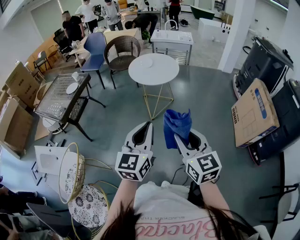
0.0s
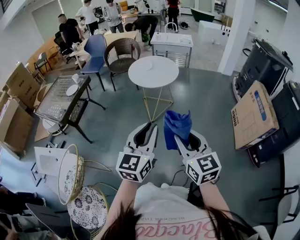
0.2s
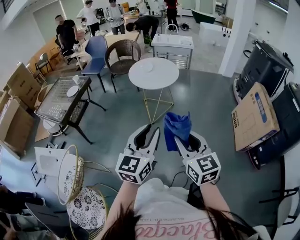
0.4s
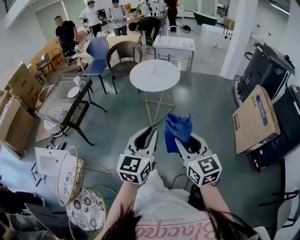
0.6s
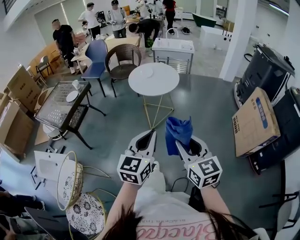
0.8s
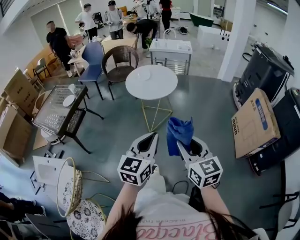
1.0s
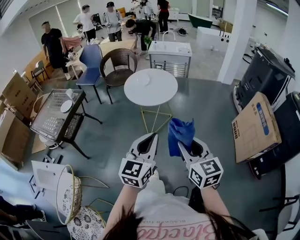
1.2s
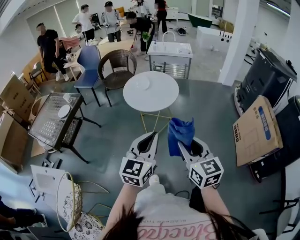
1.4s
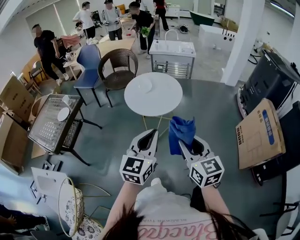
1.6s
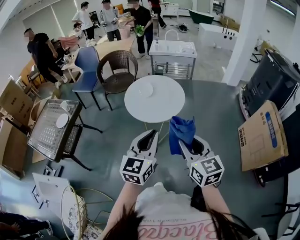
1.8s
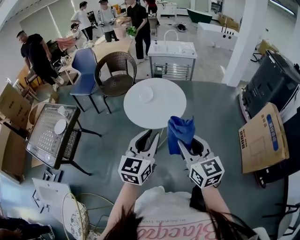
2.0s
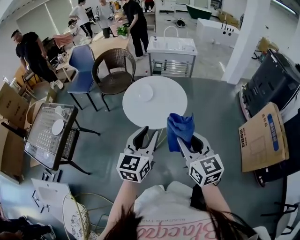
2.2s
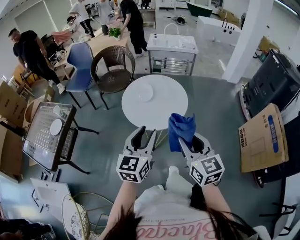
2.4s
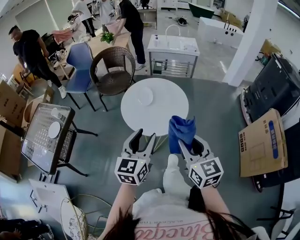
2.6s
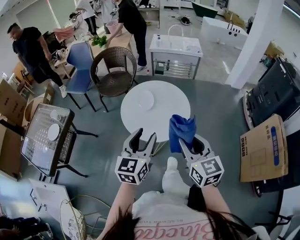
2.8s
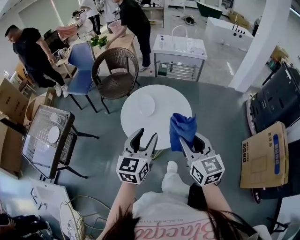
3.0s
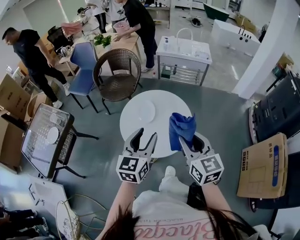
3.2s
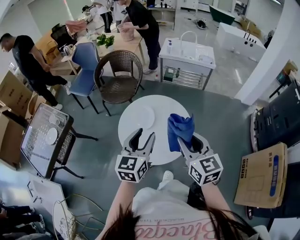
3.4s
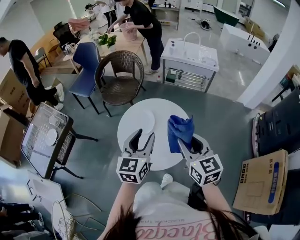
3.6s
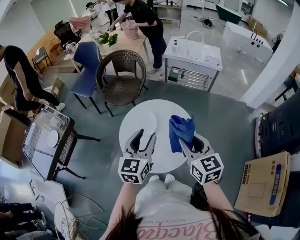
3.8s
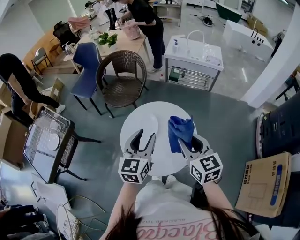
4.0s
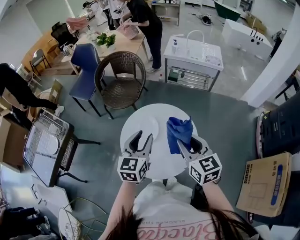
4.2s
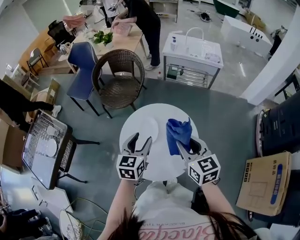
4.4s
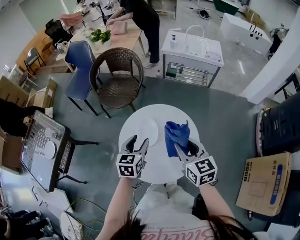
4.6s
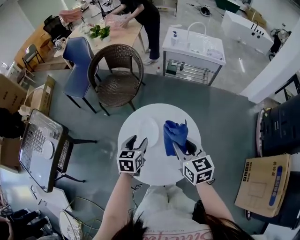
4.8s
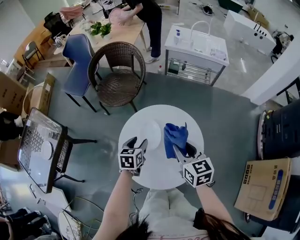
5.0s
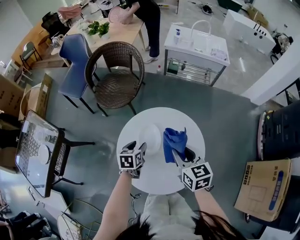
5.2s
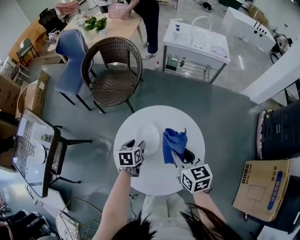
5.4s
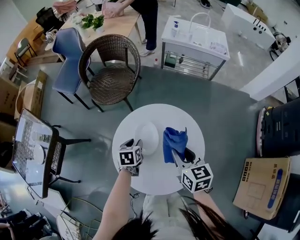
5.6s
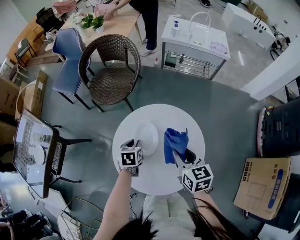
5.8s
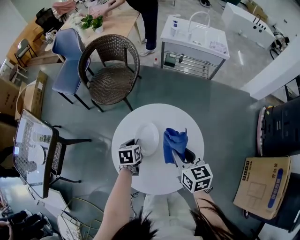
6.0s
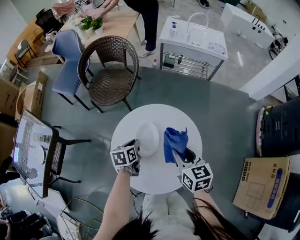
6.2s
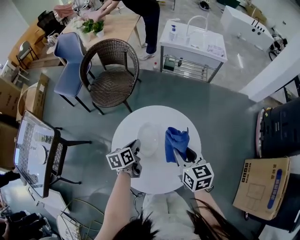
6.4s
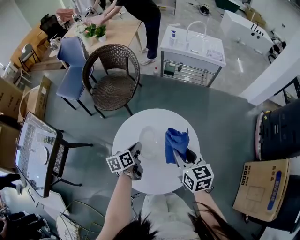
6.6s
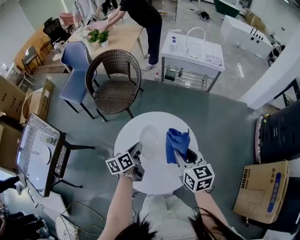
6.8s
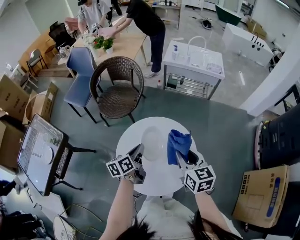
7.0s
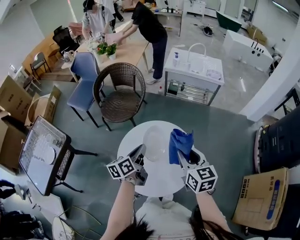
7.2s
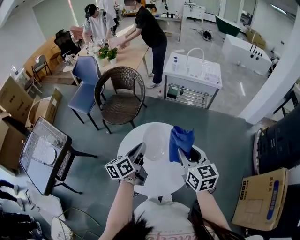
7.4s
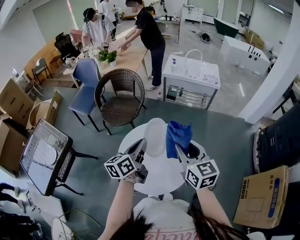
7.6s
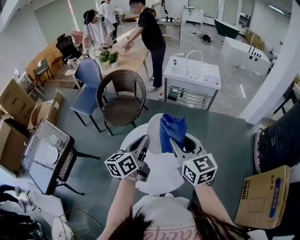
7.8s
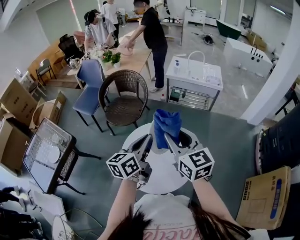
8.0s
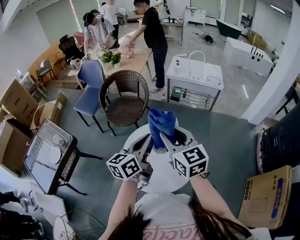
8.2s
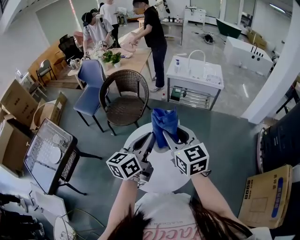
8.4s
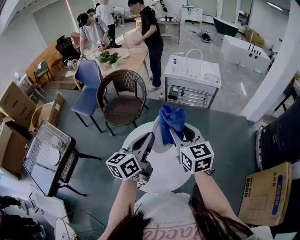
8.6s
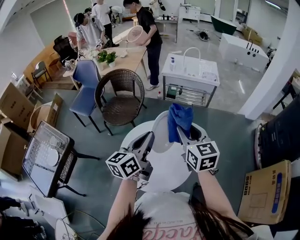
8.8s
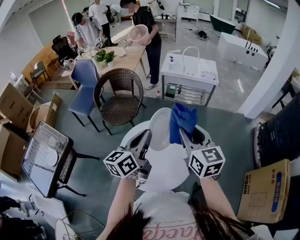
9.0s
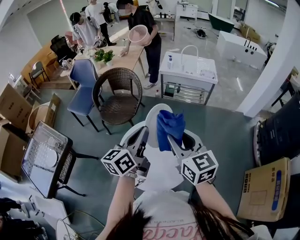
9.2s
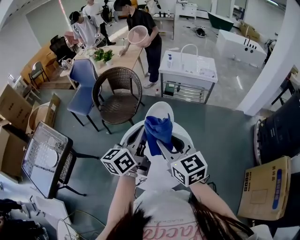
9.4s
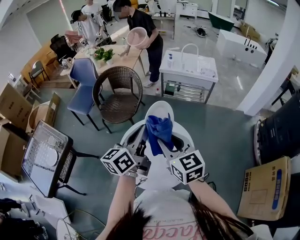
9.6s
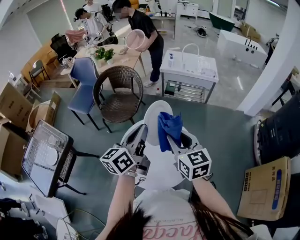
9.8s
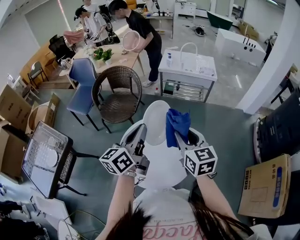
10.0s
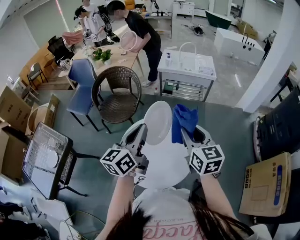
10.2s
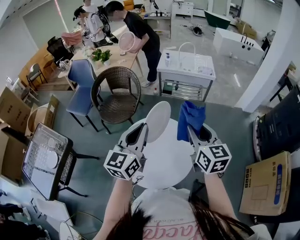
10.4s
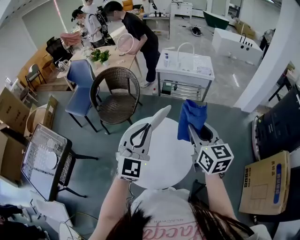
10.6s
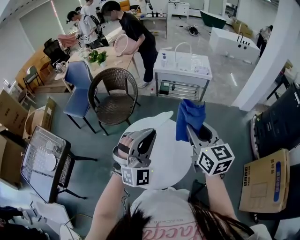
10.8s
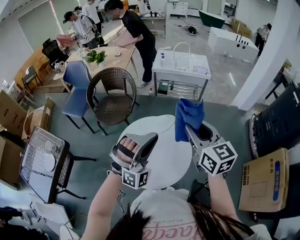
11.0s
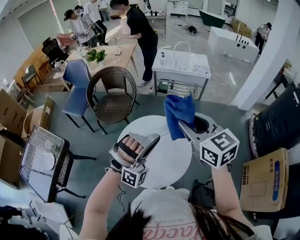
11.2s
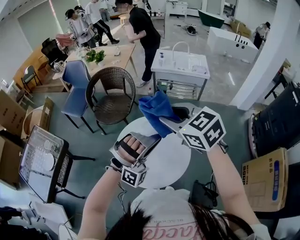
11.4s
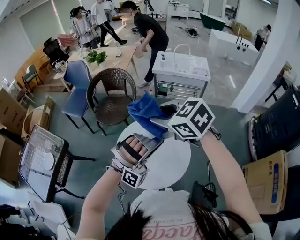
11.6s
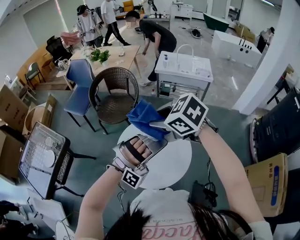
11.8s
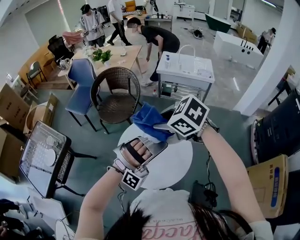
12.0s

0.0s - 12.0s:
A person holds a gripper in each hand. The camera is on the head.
0.0s - 1.6s: The grippers both shift forward by some 25 cm. The left gripper opens and closes again.
1.6s - 3.0s: Both grippers travel together forward, roughly 30 cm. The left gripper opens.
3.0s - 4.4s: The left gripper goes approximately 25 cm forward and downward. Meanwhile the right gripper shifts roughly 20 cm forward.
4.4s - 6.0s: The left gripper is displaced downward by about 20 cm, tips its fingers downward by roughly 30 degrees, and closes its fingers. The right gripper moves downward and forward, about 15 cm.
6.0s - 7.6s: The two grippers go roughly 25 cm upward. The right gripper swivels about 20 degrees. Meanwhile the left gripper points its fingers about 50 degrees further upward.
7.6s - 9.0s: The right gripper reaches roughly 10 cm to the left, then returns, while the left gripper heads upward, covering about 5 cm.
9.0s - 10.4s: The right gripper travels to the left and back again, about 10 cm each way; the left gripper rotates about 30 degrees.
10.4s - 12.0s: The right gripper goes roughly 15 cm to the left, and tilts its fingers approximately 30 degrees downward, while the left gripper moves backward, to the right and downward, roughly 15 cm, and twists about 110 degrees clockwise, seen from behind.

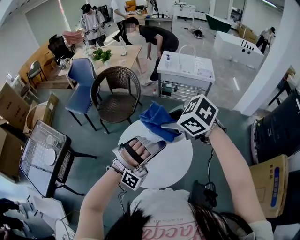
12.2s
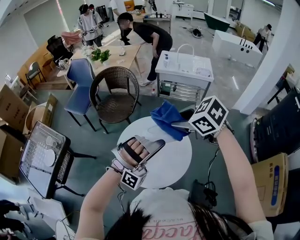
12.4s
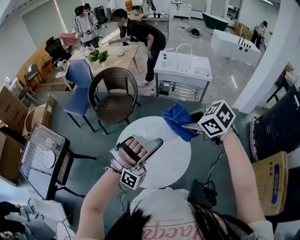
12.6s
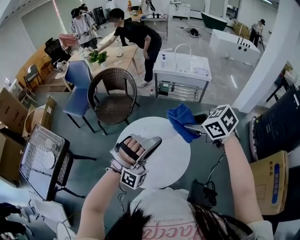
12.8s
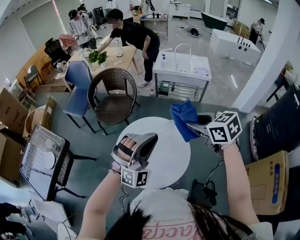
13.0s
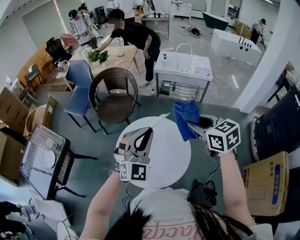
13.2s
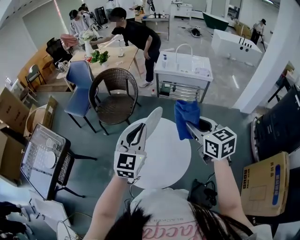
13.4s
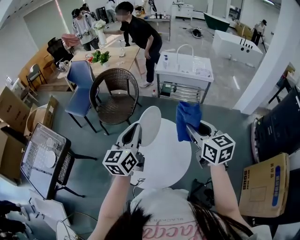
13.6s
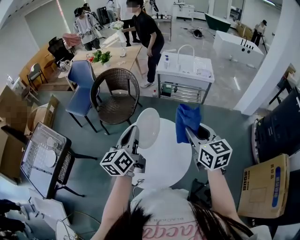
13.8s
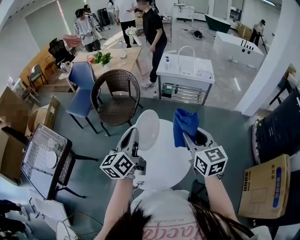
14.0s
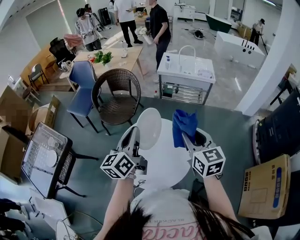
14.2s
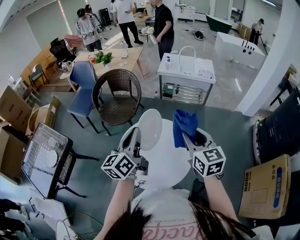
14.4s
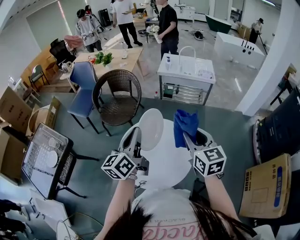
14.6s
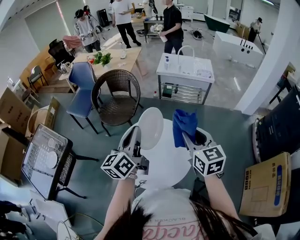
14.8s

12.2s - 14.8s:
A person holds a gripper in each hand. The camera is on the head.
12.2s - 13.4s: The left gripper moves forward, about 10 cm, and rolls counterclockwise, seen from behind, by roughly 90 degrees. Meanwhile the right gripper heads to the right, covering about 15 cm, and rotates approximately 40 degrees.
13.4s - 14.8s: The left gripper twists roughly 50 degrees counterclockwise, seen from behind.

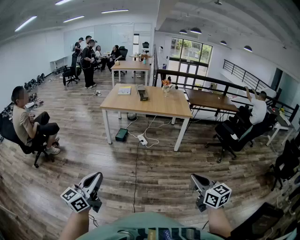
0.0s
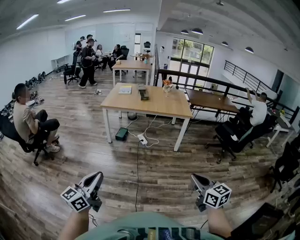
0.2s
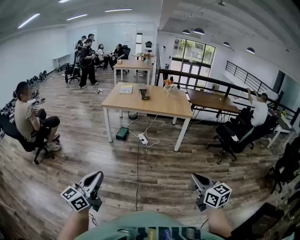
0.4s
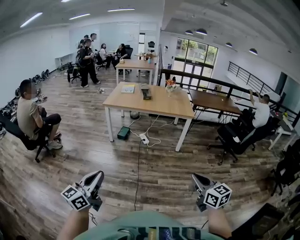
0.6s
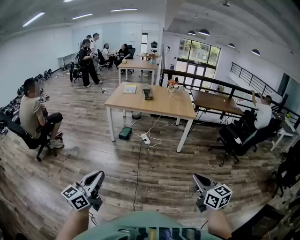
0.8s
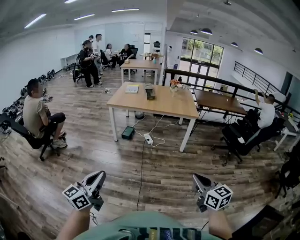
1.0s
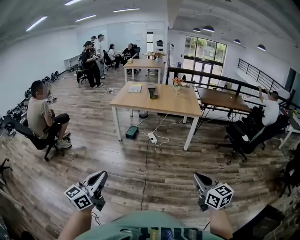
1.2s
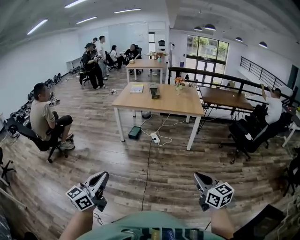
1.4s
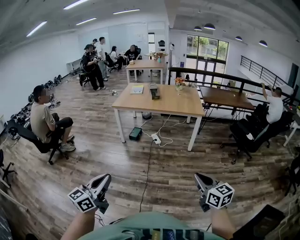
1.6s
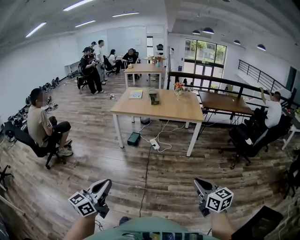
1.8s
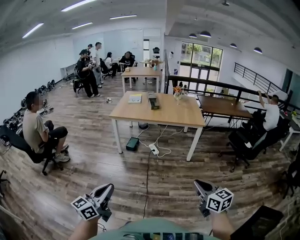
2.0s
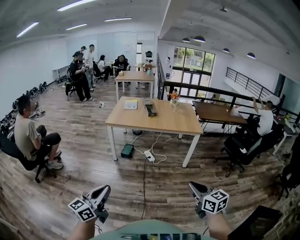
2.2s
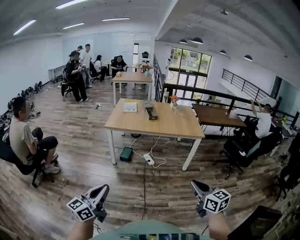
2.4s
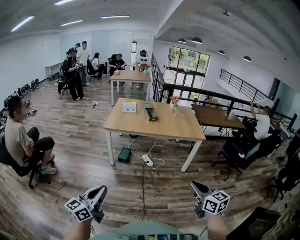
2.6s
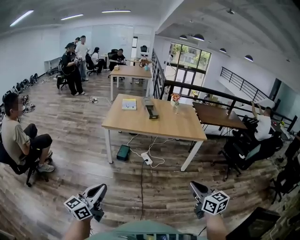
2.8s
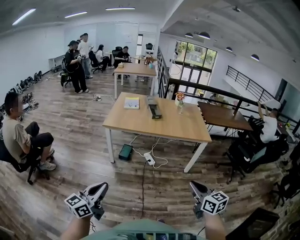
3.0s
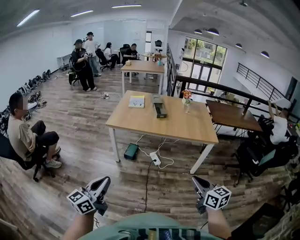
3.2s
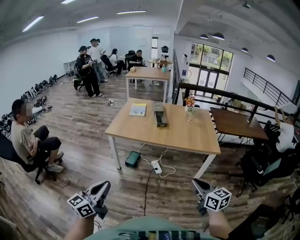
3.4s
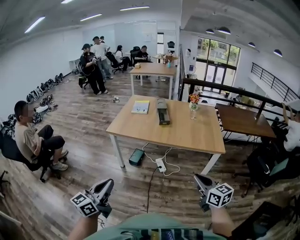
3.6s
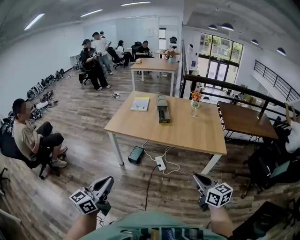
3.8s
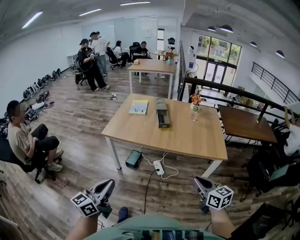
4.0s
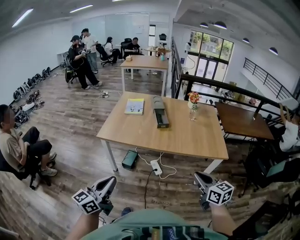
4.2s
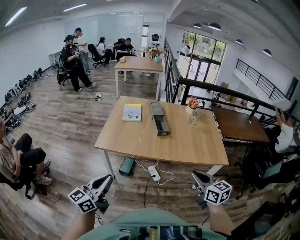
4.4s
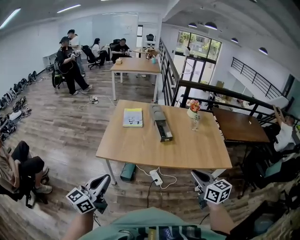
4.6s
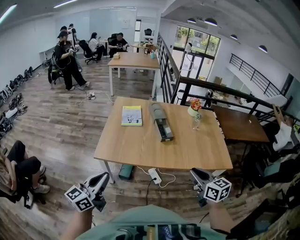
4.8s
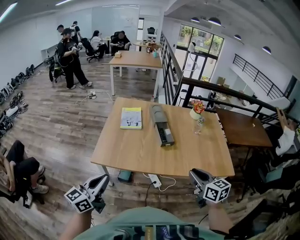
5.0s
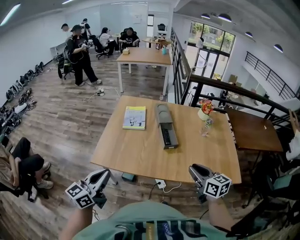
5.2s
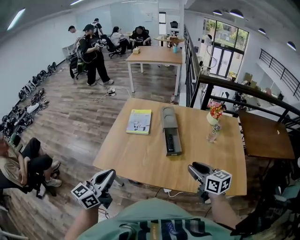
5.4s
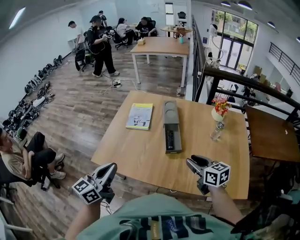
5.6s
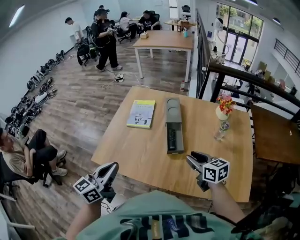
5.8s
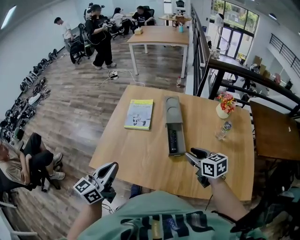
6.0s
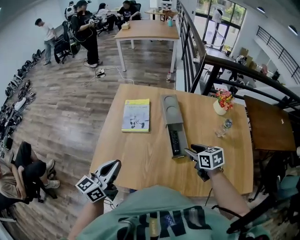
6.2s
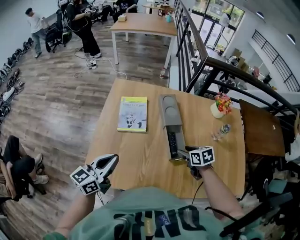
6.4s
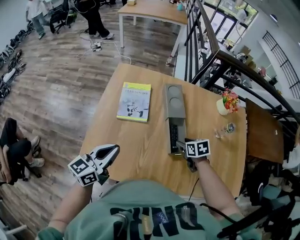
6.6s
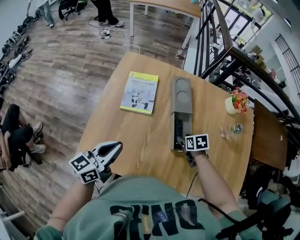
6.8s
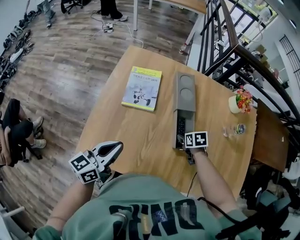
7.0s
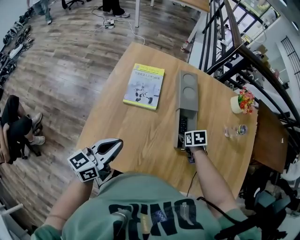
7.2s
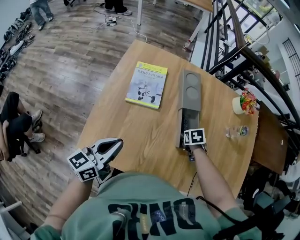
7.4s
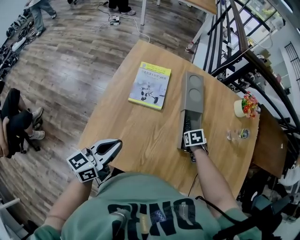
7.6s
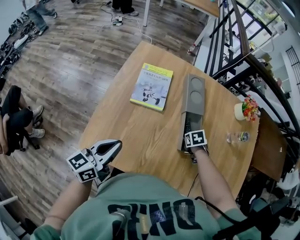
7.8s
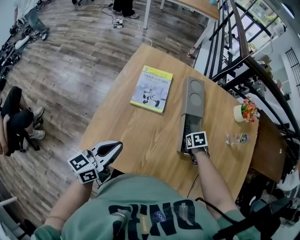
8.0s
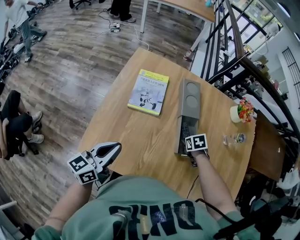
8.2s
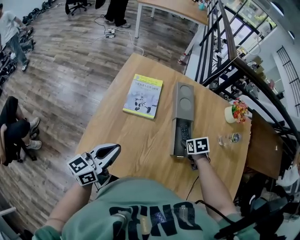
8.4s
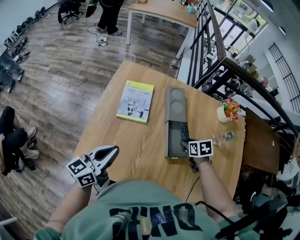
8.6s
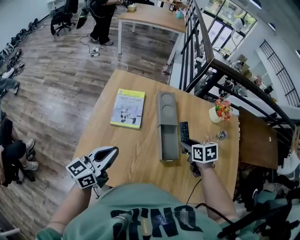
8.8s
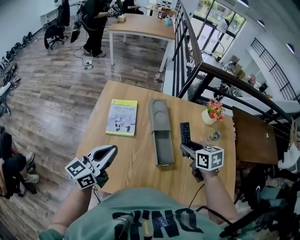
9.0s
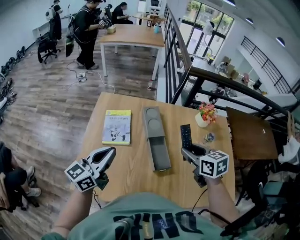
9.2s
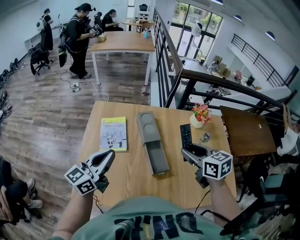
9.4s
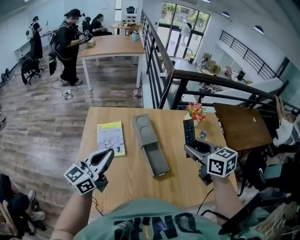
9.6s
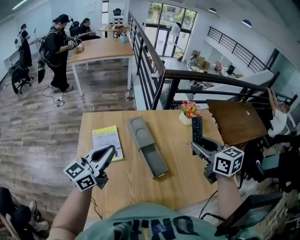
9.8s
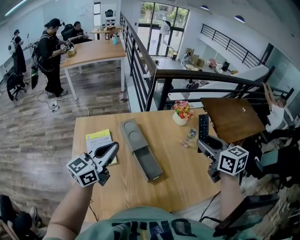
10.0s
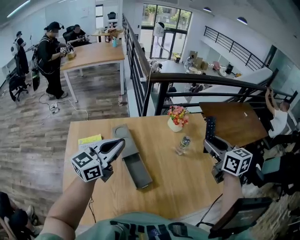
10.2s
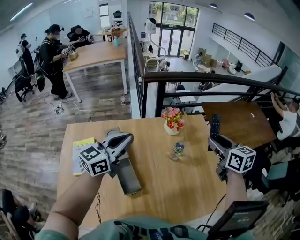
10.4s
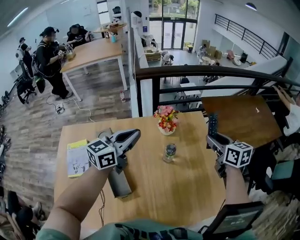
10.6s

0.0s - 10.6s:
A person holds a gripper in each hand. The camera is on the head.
0.0s - 1.6s: The left gripper is displaced to the right by some 10 cm; the right gripper heads to the right, covering roughly 5 cm.
1.6s - 3.0s: The grippers both shift forward and to the left by roughly 40 cm.
3.0s - 4.6s: The two grippers travel together, forward, roughly 50 cm.
4.6s - 6.0s: The grippers both shift forward by roughly 40 cm. The right gripper swivels about 20 degrees, and opens its fingers.
6.0s - 7.6s: The left gripper ends up approximately 15 cm from where it was; the right gripper moves downward, roughly 25 cm, and tilts its fingers roughly 50 degrees downward.
7.6s - 9.0s: The left gripper moves upward, some 10 cm; the right gripper goes roughly 25 cm upward, and points its fingers some 40 degrees further upward.
9.0s - 10.6s: The pair of grippers is taken to the right and forward, about 50 cm. The right gripper changes its angle by roughly 30 degrees. Meanwhile the left gripper changes its angle by roughly 20 degrees.
